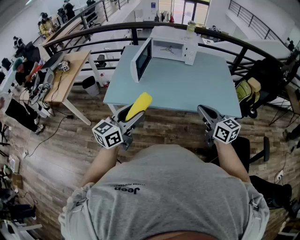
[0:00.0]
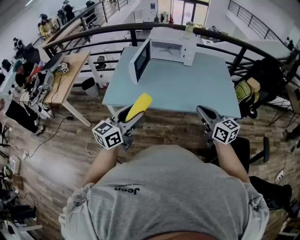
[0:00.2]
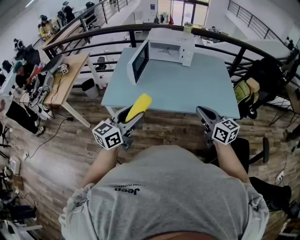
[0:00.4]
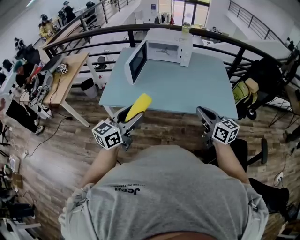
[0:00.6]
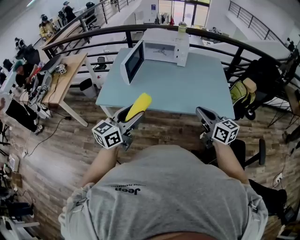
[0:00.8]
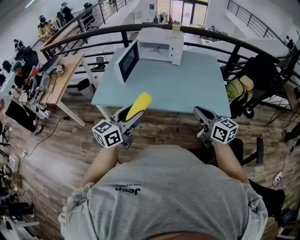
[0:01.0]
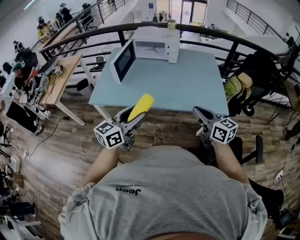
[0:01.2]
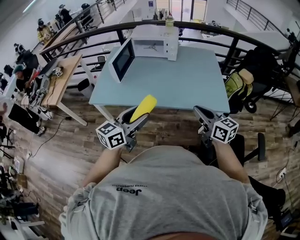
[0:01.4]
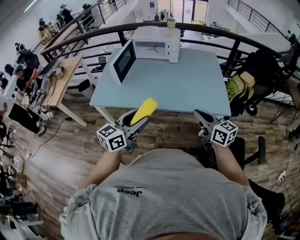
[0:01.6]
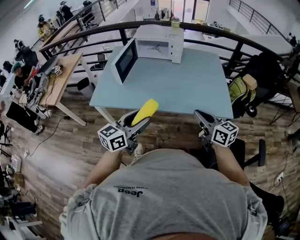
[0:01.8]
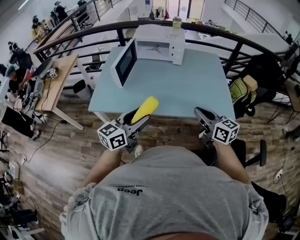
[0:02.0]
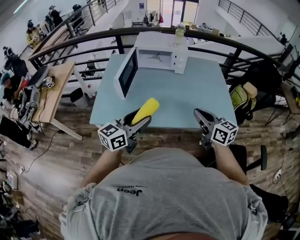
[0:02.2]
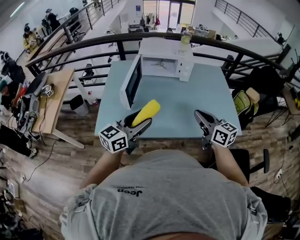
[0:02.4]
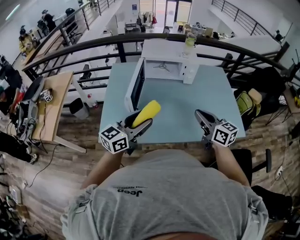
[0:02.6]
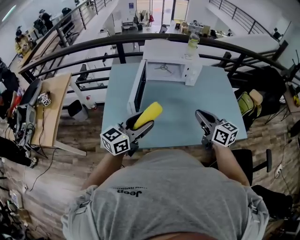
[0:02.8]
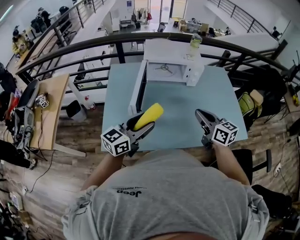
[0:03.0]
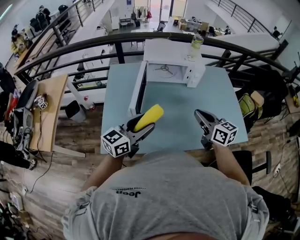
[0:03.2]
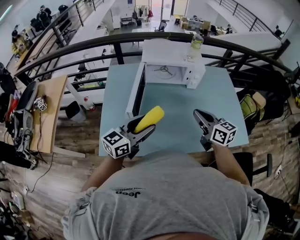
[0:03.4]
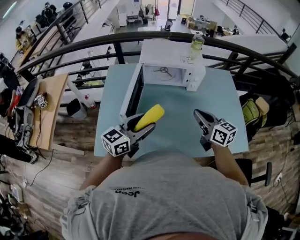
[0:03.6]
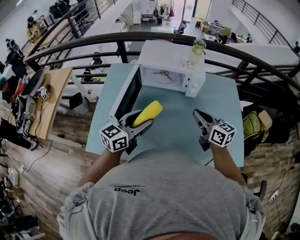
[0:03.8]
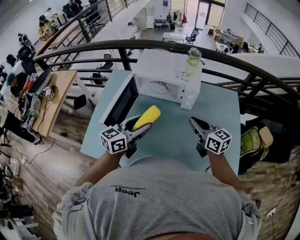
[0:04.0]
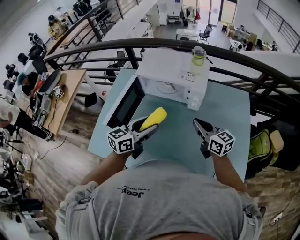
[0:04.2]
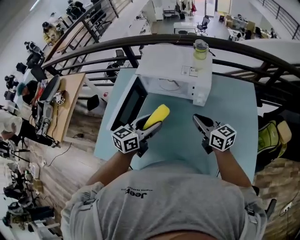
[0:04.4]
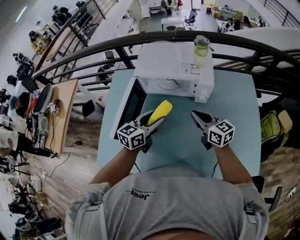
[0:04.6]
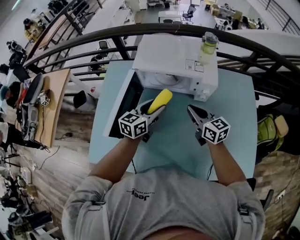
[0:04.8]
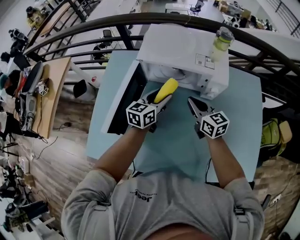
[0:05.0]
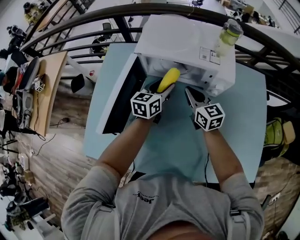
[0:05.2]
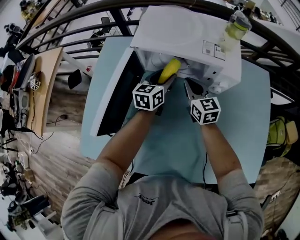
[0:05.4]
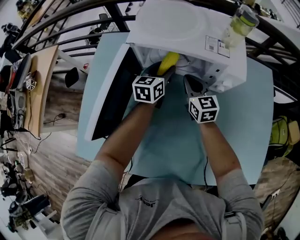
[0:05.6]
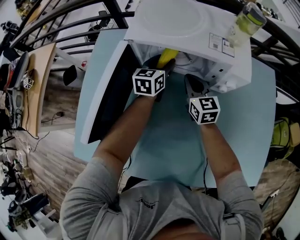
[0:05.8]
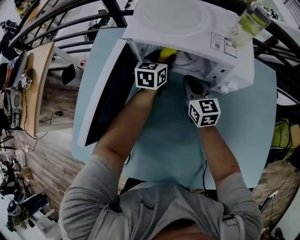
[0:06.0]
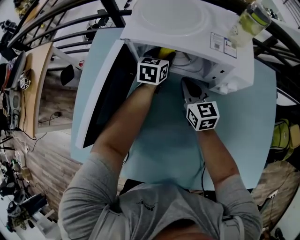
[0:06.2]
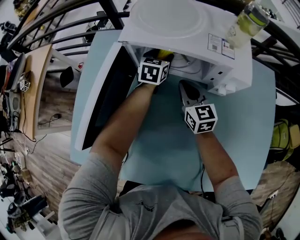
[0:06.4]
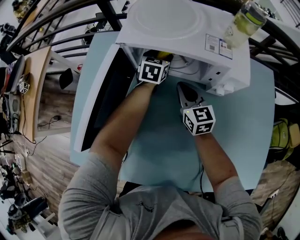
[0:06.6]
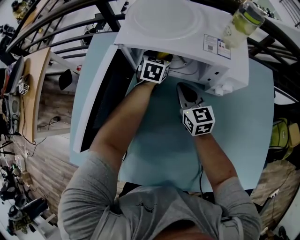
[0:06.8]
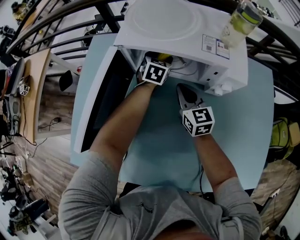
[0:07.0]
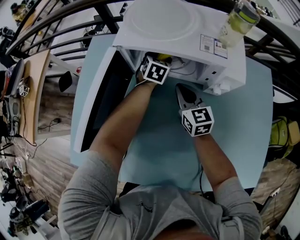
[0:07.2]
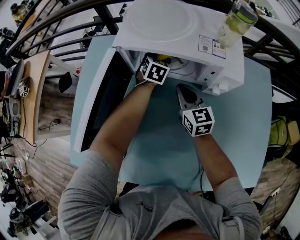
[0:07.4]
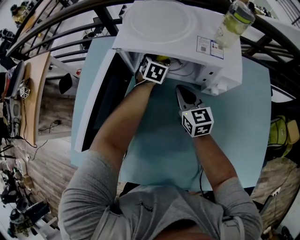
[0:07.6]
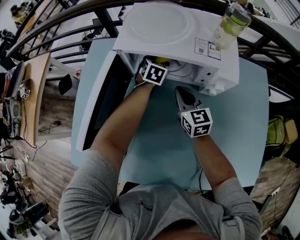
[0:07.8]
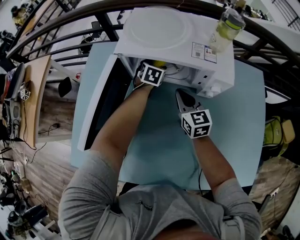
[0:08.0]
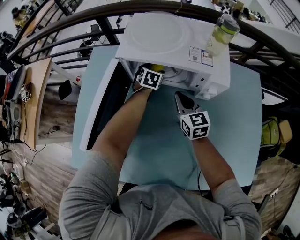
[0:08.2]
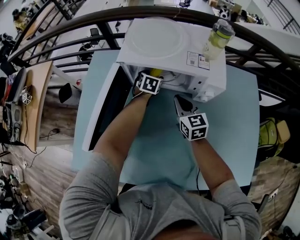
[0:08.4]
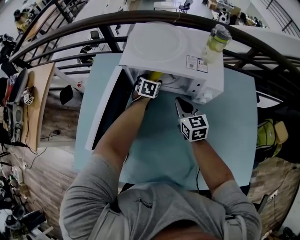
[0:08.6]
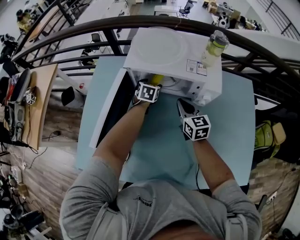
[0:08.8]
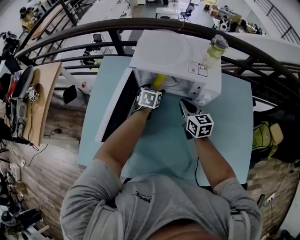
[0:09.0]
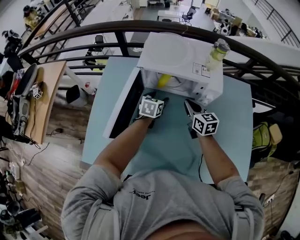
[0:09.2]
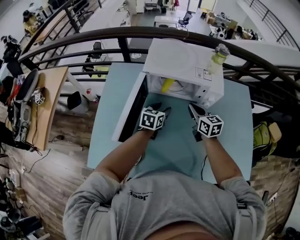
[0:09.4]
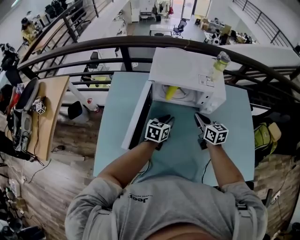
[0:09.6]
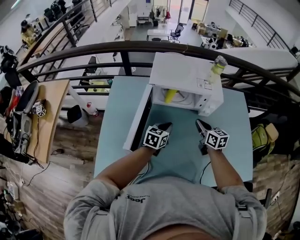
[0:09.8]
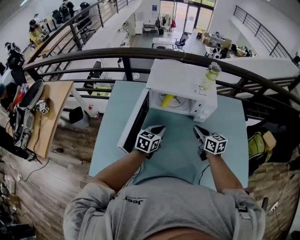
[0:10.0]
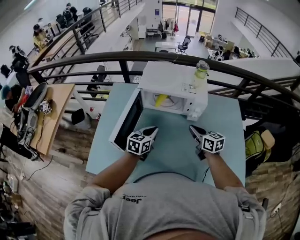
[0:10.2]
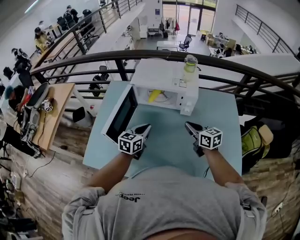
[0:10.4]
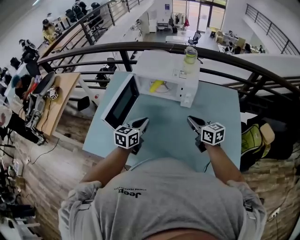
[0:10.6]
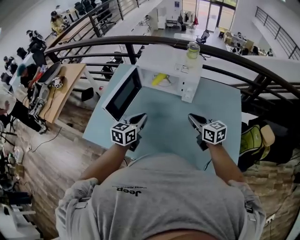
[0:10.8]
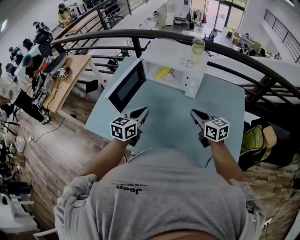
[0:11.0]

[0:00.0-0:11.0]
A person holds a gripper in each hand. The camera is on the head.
0:00.0 to 0:01.6: Both grippers travel together to the right, about 15 cm.
0:01.6 to 0:03.2: Both grippers move forward and to the left, roughly 40 cm.
0:03.2 to 0:04.8: The left gripper is displaced forward, to the right and downward by about 35 cm, and swivels about 20 degrees, while the right gripper travels forward and downward by approximately 25 cm.
0:04.8 to 0:06.2: The left gripper goes some 25 cm forward and downward, and swivels roughly 20 degrees, while the right gripper is displaced downward, forward and to the left by approximately 20 cm.
0:06.2 to 0:07.8: The left gripper swivels approximately 20 degrees.
0:07.8 to 0:09.4: The right gripper heads upward, covering about 10 cm, while the left gripper goes about 20 cm backward and upward, and turns by roughly 20 degrees.
0:09.4 to 0:11.0: The left gripper shifts some 25 cm backward and upward, and closes its fingers; the right gripper heads backward, to the right and upward, covering some 25 cm, and changes its angle by about 20 degrees.

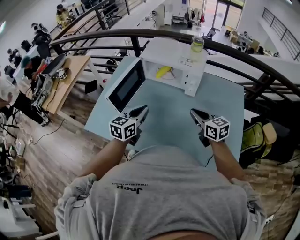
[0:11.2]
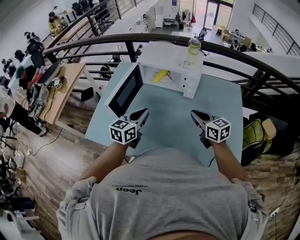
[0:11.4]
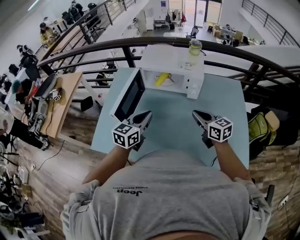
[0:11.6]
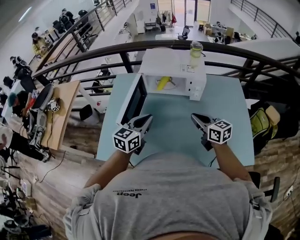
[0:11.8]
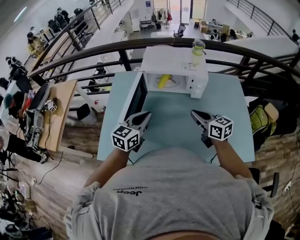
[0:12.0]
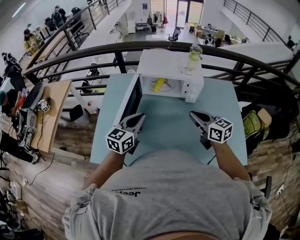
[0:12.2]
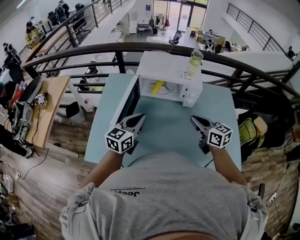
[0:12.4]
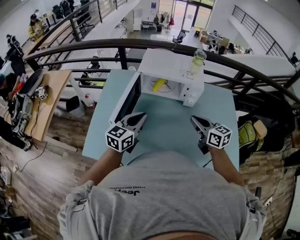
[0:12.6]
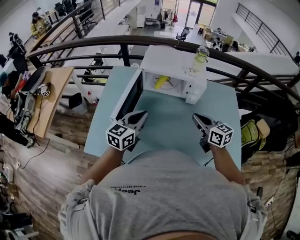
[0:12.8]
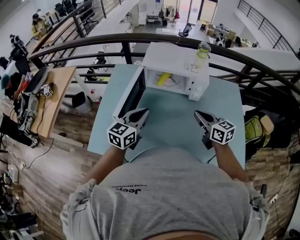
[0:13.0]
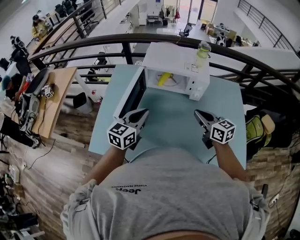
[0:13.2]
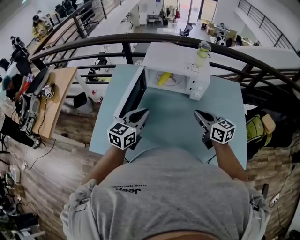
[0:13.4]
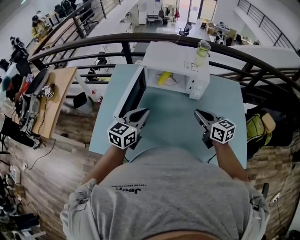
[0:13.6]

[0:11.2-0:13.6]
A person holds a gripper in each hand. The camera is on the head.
0:11.2 to 0:12.4: The left gripper travels to the left and forward by about 10 cm. Meanwhile the right gripper shifts about 10 cm to the left.
0:12.4 to 0:13.6: The grippers make only small movements.

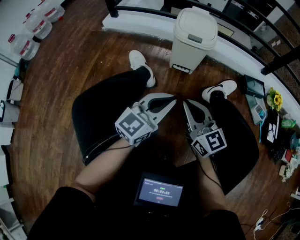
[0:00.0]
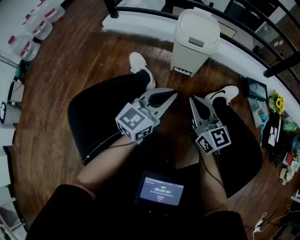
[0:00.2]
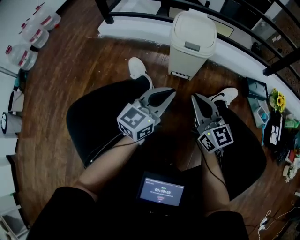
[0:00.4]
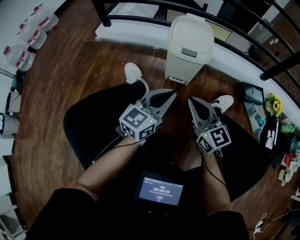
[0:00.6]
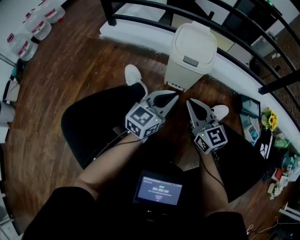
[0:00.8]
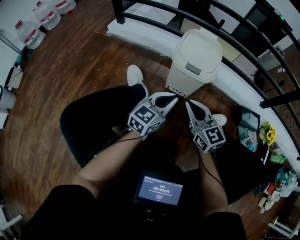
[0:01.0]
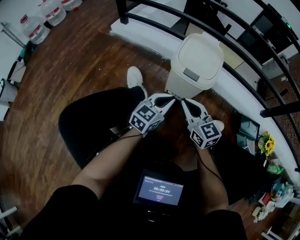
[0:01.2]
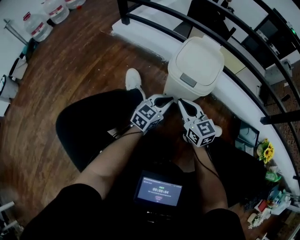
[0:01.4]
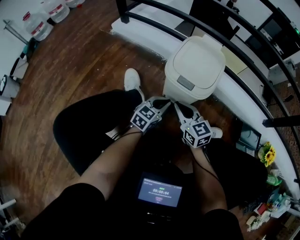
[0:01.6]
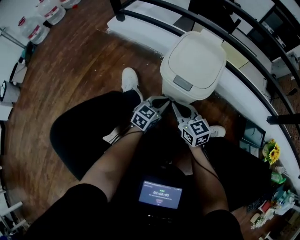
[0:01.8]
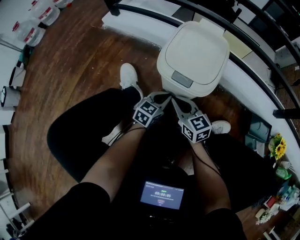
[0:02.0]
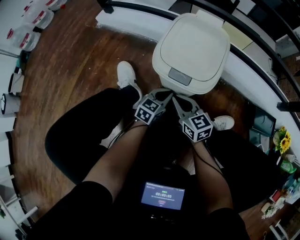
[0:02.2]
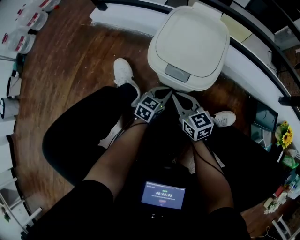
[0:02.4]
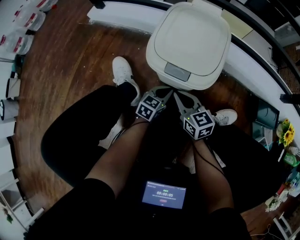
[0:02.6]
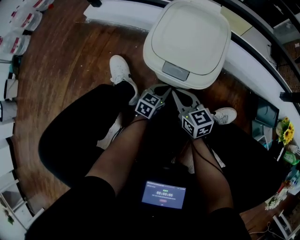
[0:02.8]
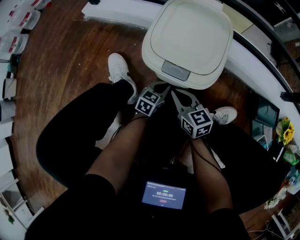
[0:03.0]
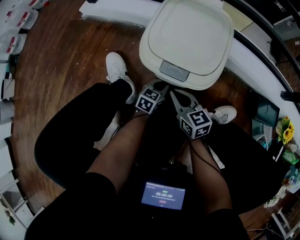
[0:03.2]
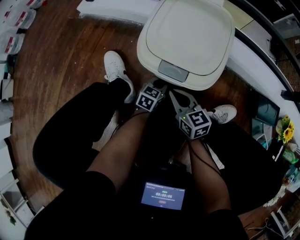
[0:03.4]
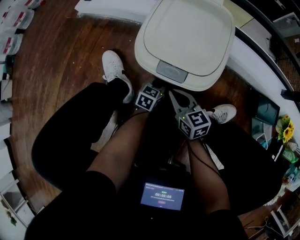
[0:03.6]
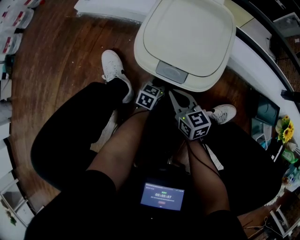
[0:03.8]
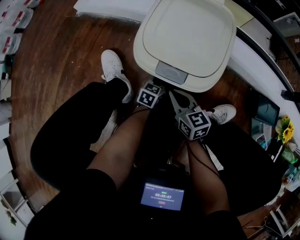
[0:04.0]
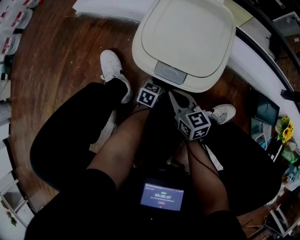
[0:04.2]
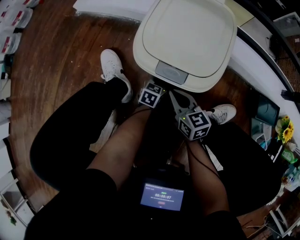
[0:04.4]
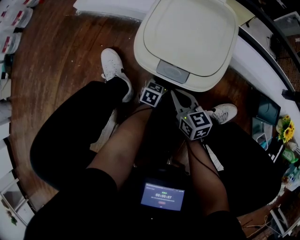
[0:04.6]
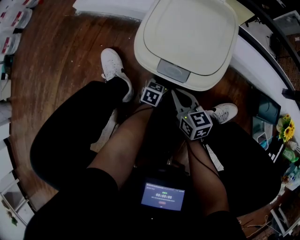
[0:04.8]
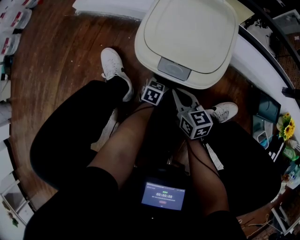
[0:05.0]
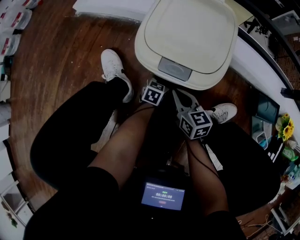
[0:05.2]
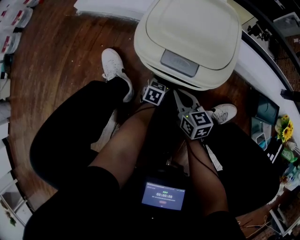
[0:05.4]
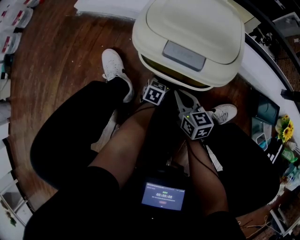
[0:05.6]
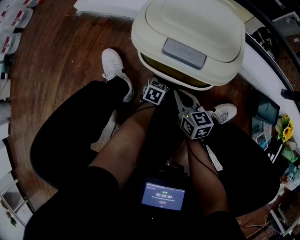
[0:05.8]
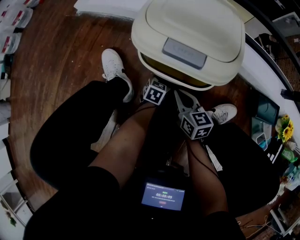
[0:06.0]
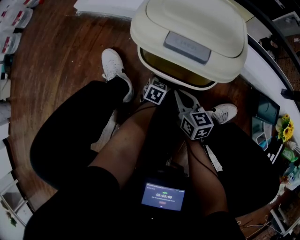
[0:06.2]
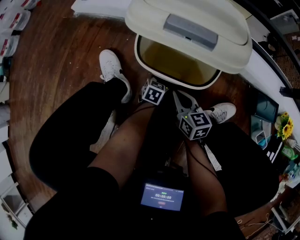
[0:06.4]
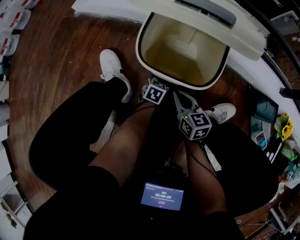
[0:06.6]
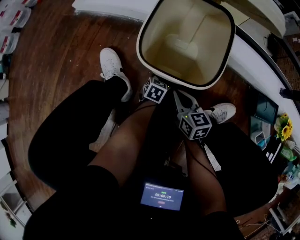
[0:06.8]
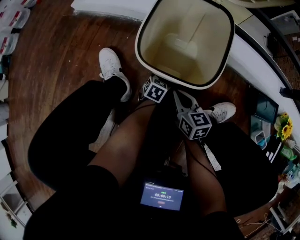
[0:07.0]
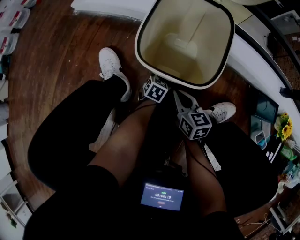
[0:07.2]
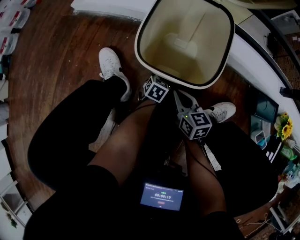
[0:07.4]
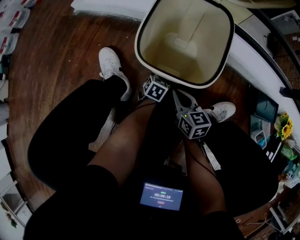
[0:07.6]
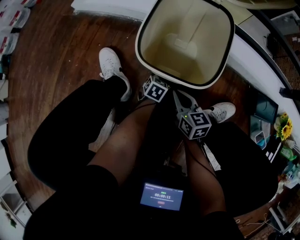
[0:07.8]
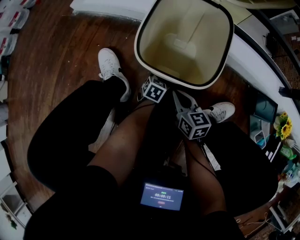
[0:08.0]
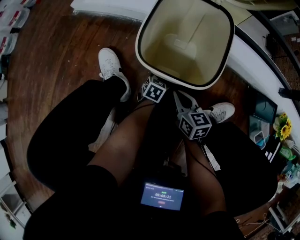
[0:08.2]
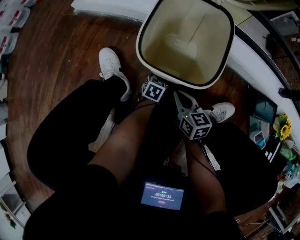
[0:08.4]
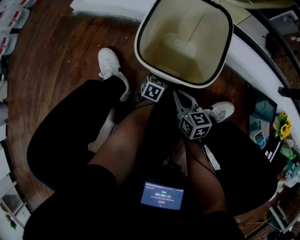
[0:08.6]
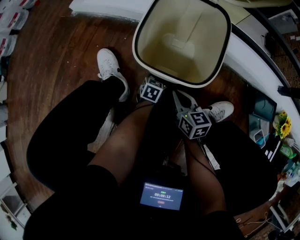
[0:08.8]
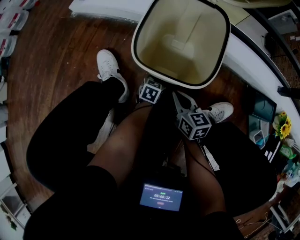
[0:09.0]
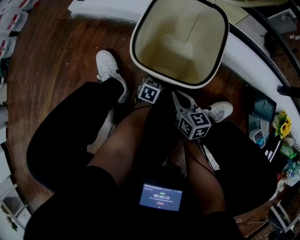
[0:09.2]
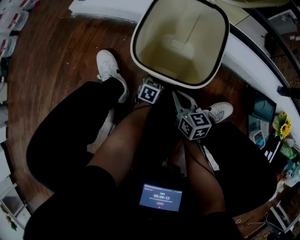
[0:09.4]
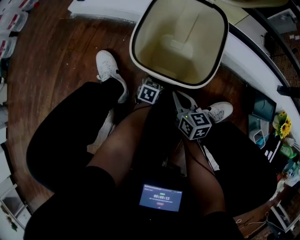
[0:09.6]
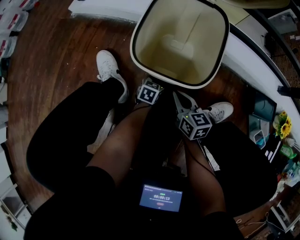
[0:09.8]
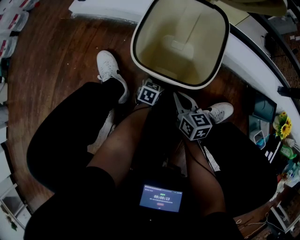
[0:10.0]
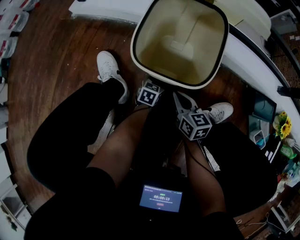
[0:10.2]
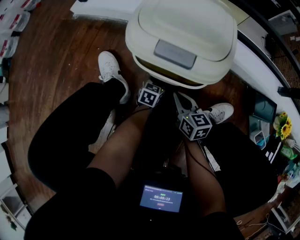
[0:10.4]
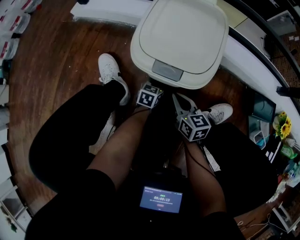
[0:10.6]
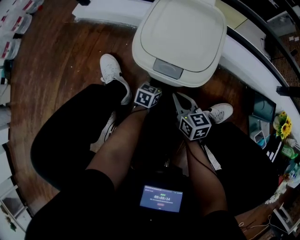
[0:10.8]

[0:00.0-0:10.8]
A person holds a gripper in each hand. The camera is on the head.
0:00.0 to 0:01.6: The two grippers go about 35 cm forward and downward. The left gripper changes its angle by roughly 30 degrees. The right gripper rotates roughly 20 degrees.
0:01.6 to 0:03.0: The grippers both shift downward by about 15 cm.
0:03.0 to 0:04.6: The left gripper travels downward by about 5 cm.
0:04.6 to 0:10.8: The grippers make only small movements.
